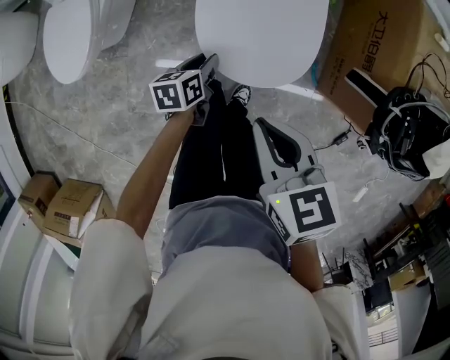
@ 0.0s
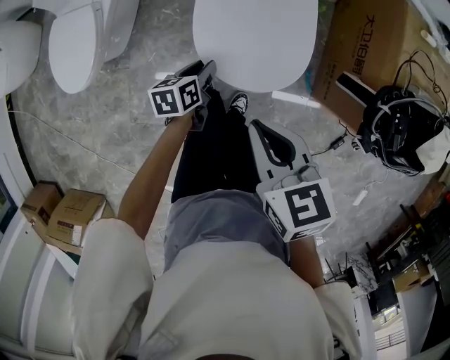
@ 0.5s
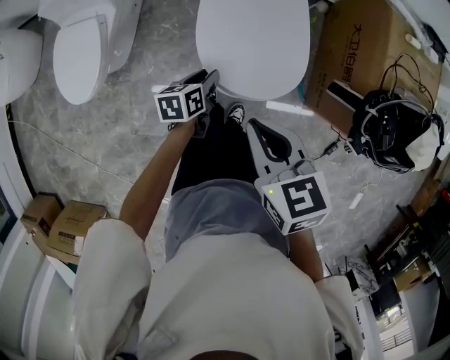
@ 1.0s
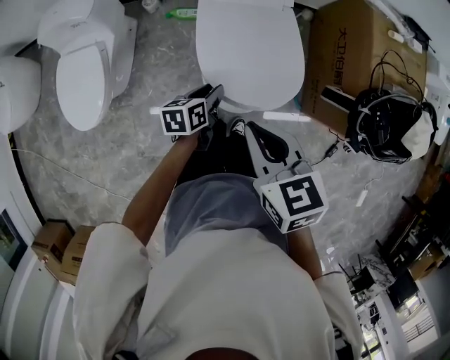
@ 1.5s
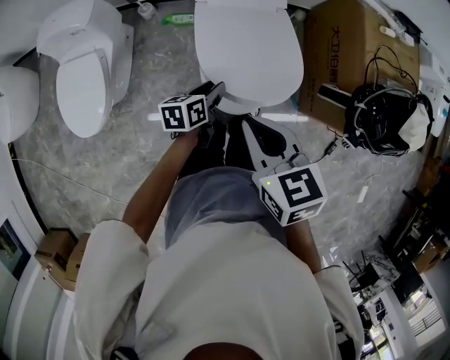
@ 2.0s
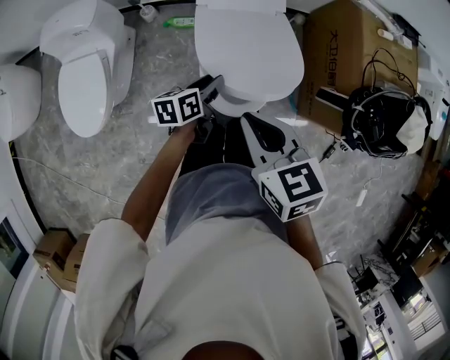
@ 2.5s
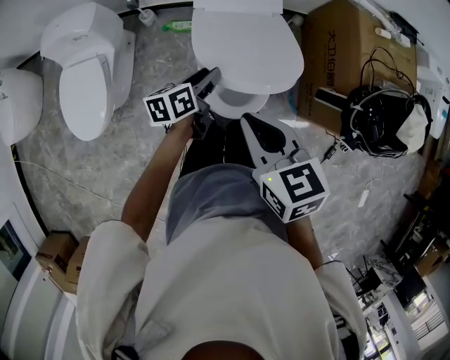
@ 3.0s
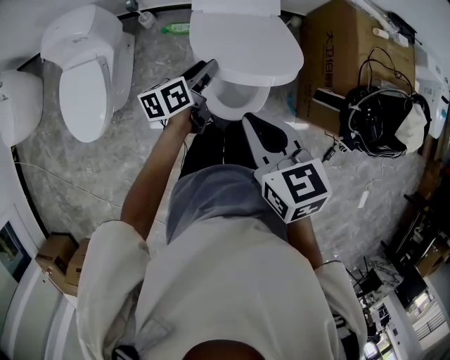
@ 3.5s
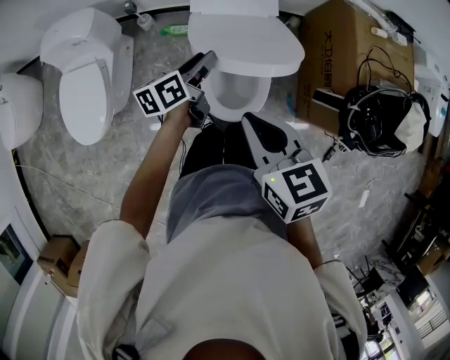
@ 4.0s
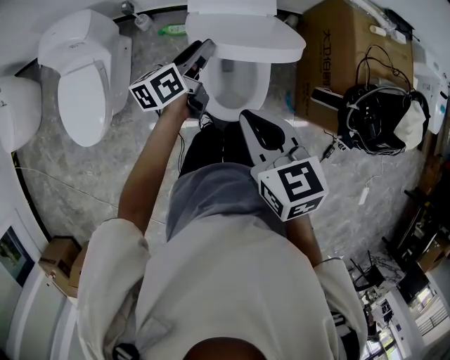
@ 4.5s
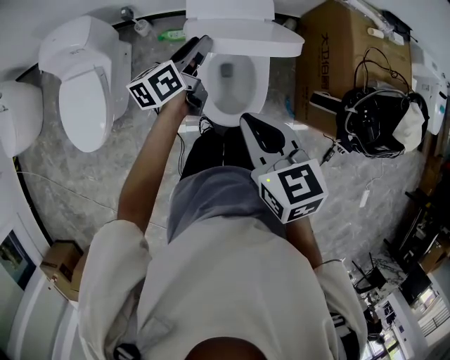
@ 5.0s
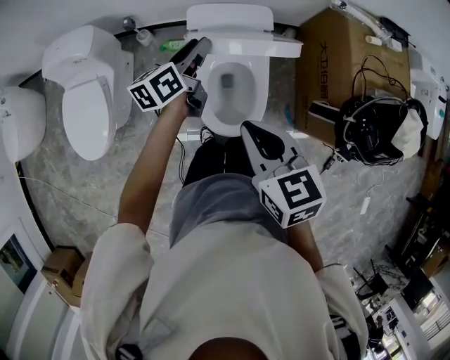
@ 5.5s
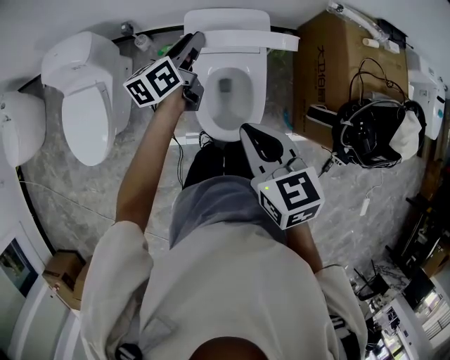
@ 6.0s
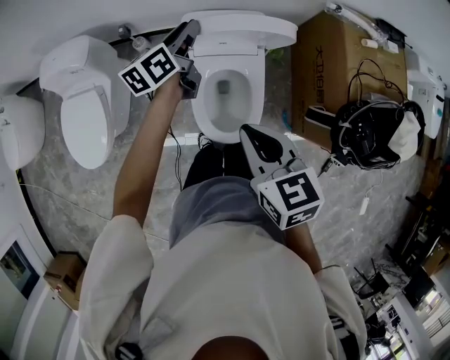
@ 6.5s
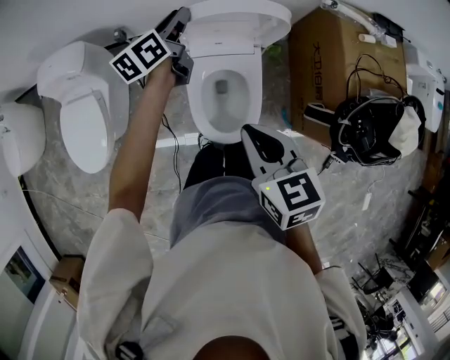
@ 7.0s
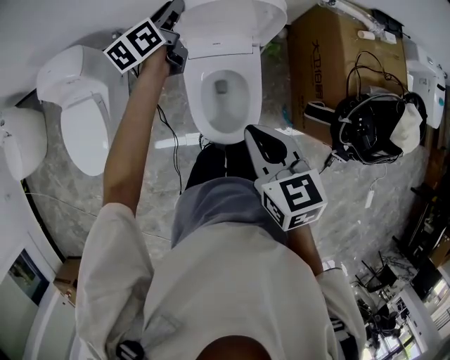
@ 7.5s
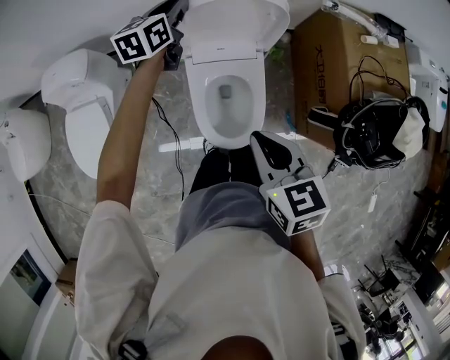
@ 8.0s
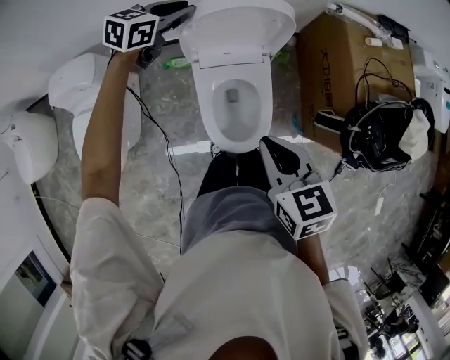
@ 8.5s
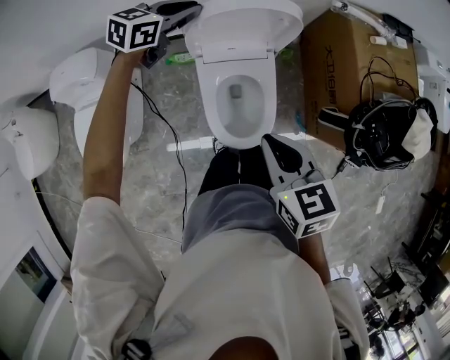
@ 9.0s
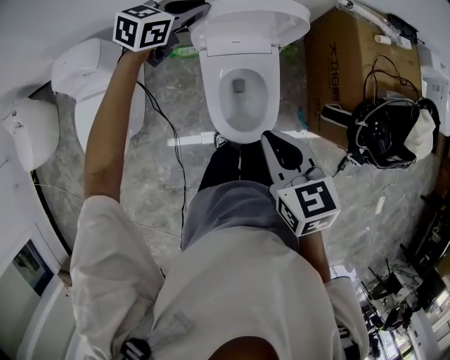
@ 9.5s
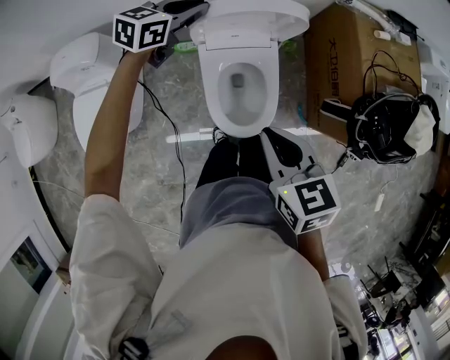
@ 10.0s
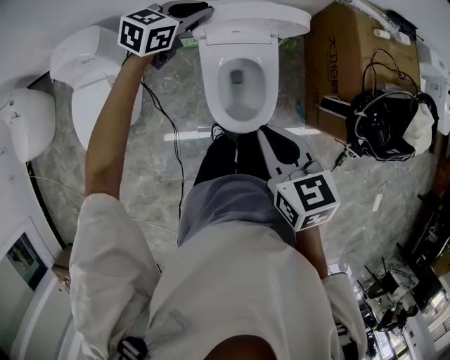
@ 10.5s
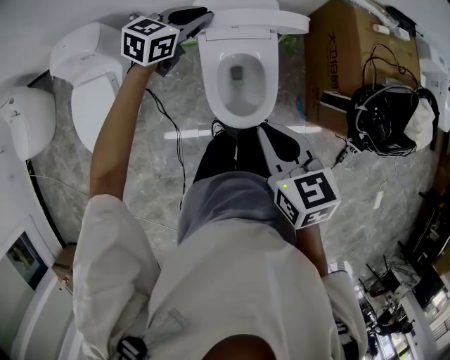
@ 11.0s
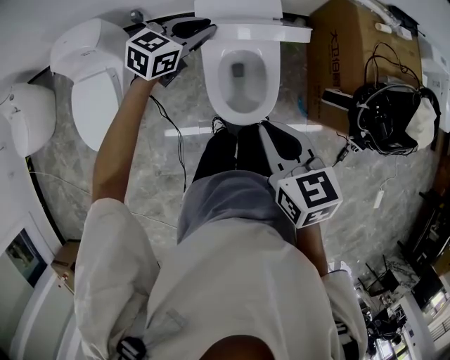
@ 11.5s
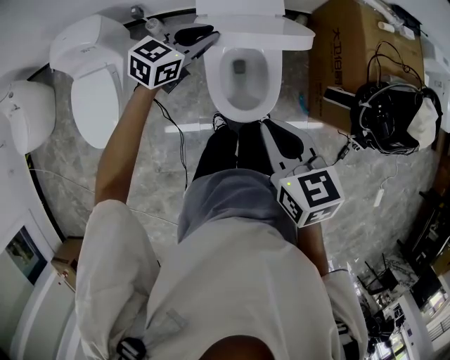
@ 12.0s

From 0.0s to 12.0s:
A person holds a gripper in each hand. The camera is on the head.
From 0.0s to 2.0s: The left gripper is displaced upward and forward by roughly 15 cm. The right gripper shifts some 15 cm upward, forward and to the left.
From 2.0s to 4.0s: The left gripper travels upward and forward by about 15 cm.
From 4.0s to 6.0s: The left gripper shifts some 15 cm forward and upward.
From 6.0s to 8.0s: The left gripper heads forward, covering some 15 cm, and turns by some 20 degrees.
From 8.0s to 10.0s: The left gripper shifts approximately 10 cm backward, and changes its angle by some 30 degrees.
From 10.0s to 12.0s: The left gripper moves backward, some 15 cm.

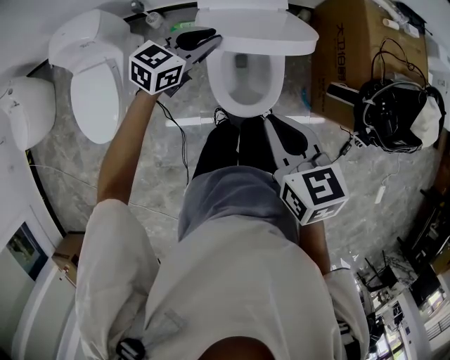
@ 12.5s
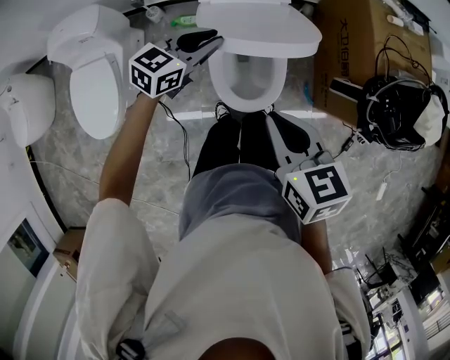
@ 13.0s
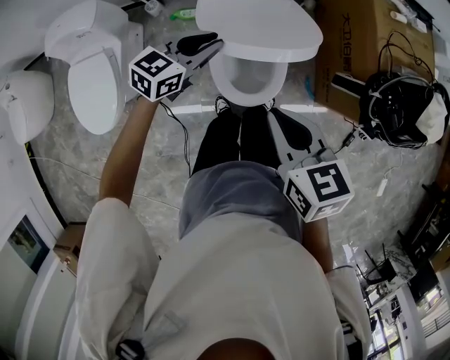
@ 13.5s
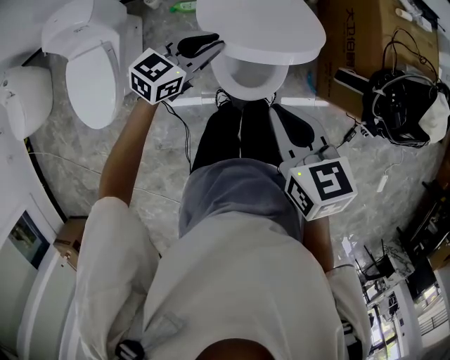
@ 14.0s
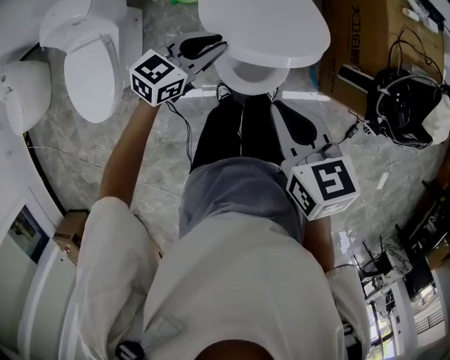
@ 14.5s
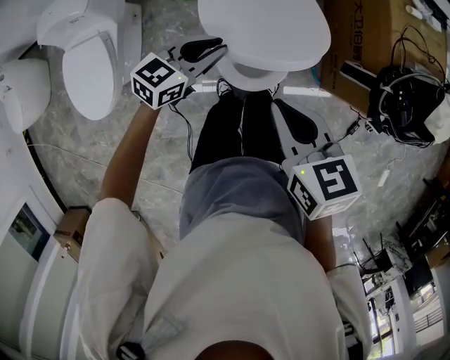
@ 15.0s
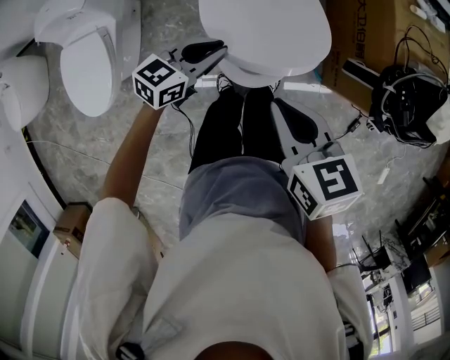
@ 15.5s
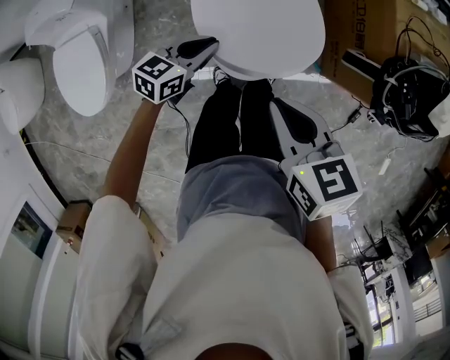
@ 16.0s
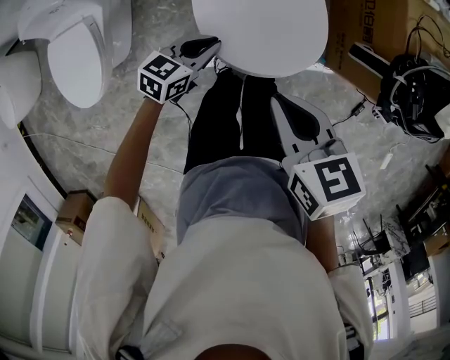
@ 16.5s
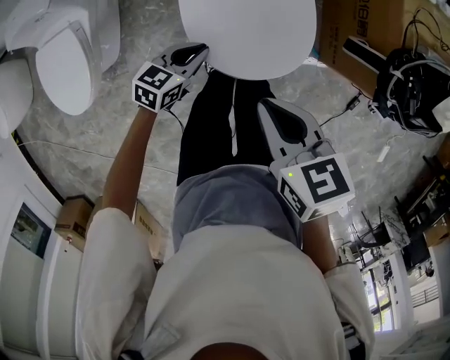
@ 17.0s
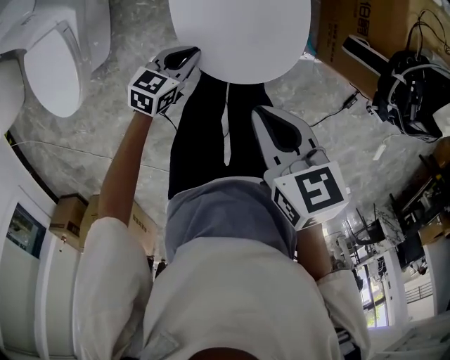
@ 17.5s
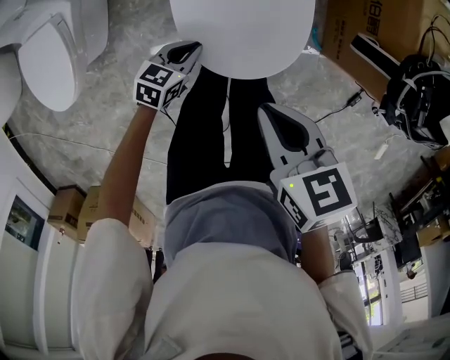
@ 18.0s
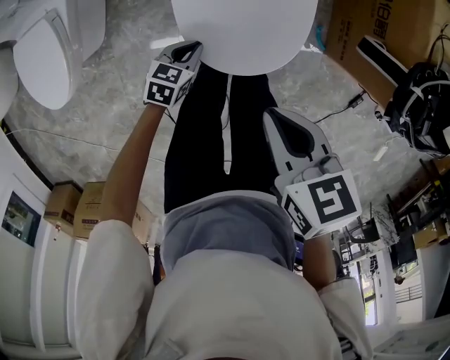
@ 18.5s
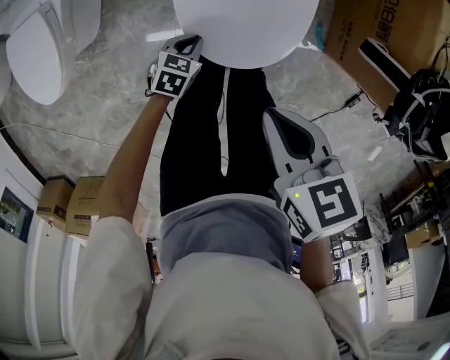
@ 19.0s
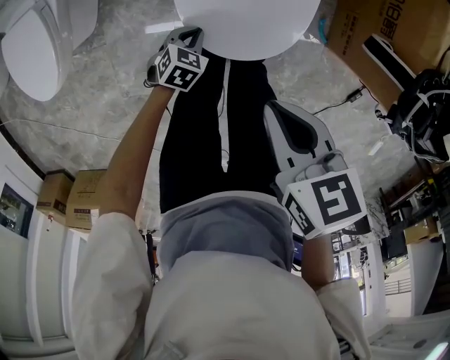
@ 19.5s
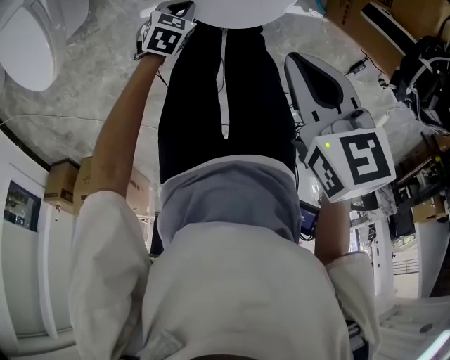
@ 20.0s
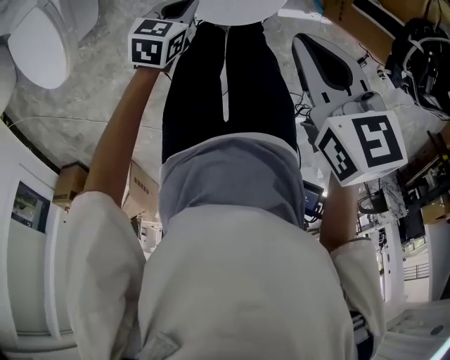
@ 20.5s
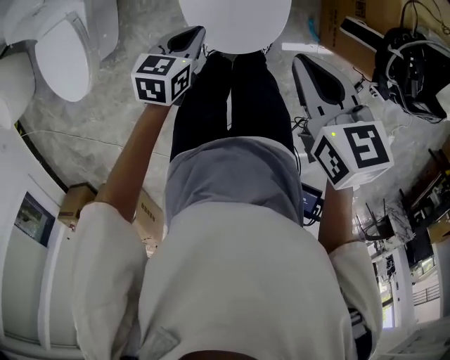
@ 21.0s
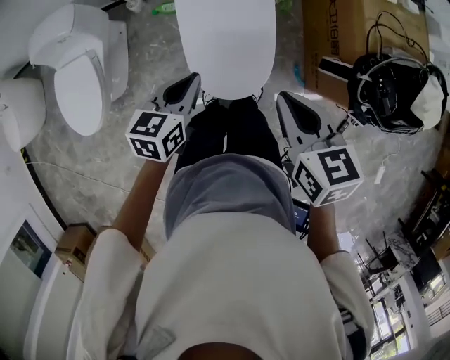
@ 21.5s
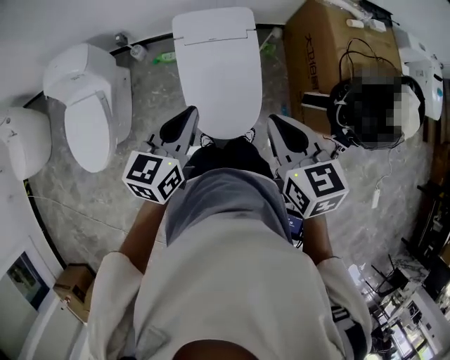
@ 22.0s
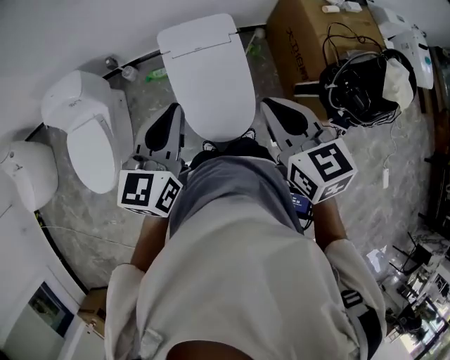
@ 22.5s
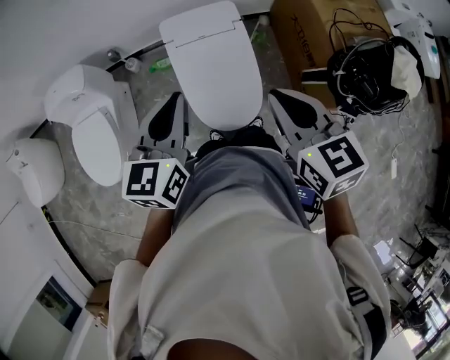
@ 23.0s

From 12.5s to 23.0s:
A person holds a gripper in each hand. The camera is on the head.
From 12.5s to 14.5s: The left gripper goes some 5 cm backward.
From 14.5s to 16.5s: The left gripper moves downward and backward, about 15 cm. The right gripper shifts some 5 cm downward.
From 16.5s to 19.0s: The right gripper goes roughly 10 cm downward. Meanwhile the left gripper travels downward by some 25 cm, and changes its angle by roughly 30 degrees.
From 19.0s to 21.0s: The right gripper travels upward and to the right by approximately 15 cm, while the left gripper moves upward, roughly 25 cm.
From 21.0s to 23.0s: The right gripper heads upward, covering some 15 cm, and swivels about 20 degrees. The left gripper travels upward by about 30 cm, and turns by roughly 30 degrees.

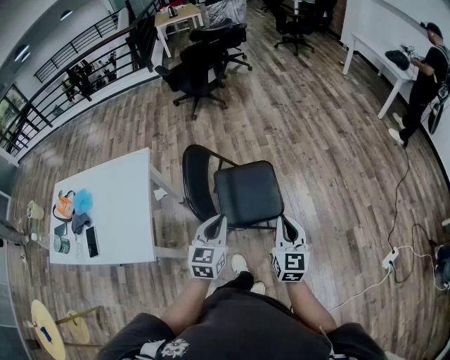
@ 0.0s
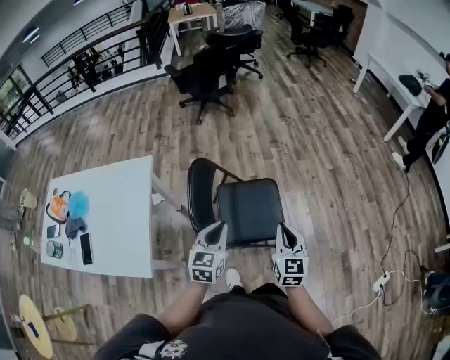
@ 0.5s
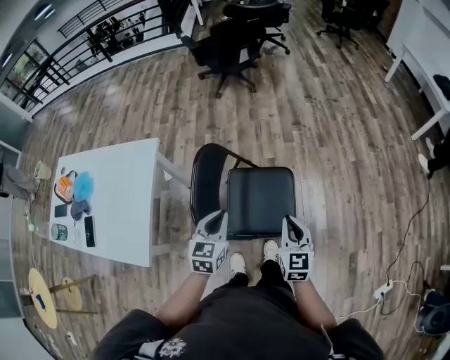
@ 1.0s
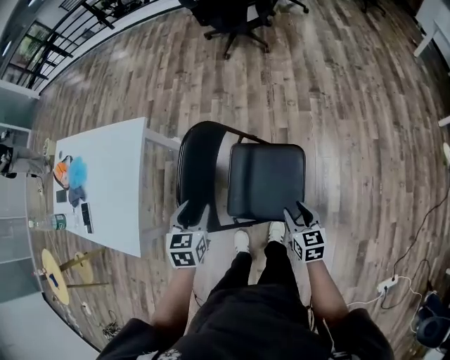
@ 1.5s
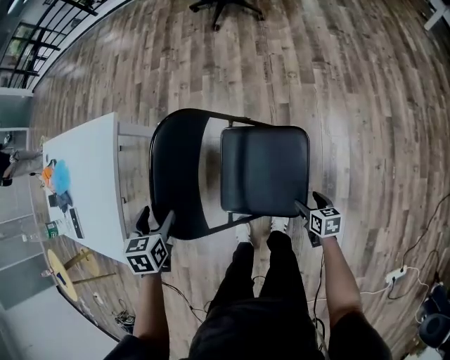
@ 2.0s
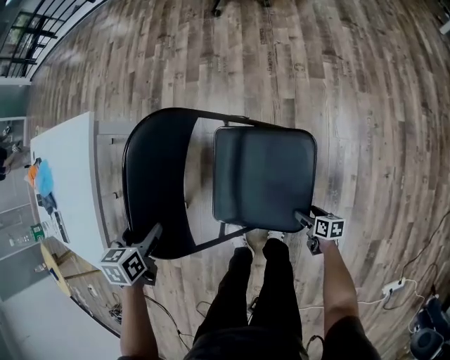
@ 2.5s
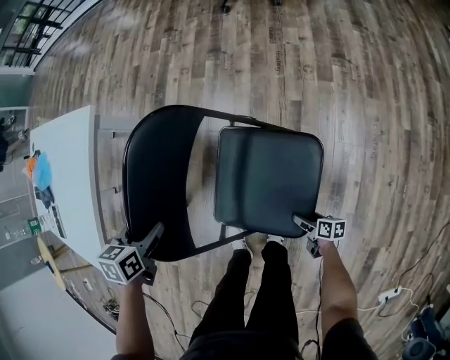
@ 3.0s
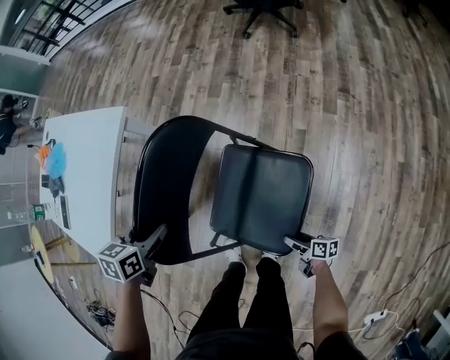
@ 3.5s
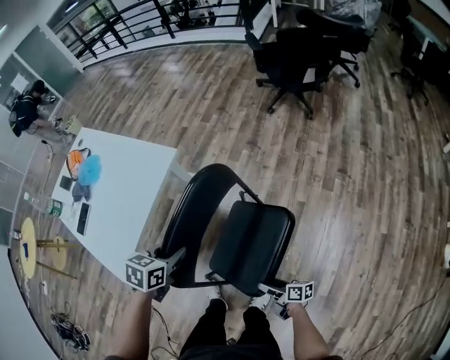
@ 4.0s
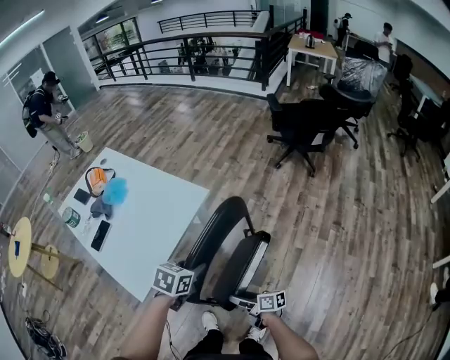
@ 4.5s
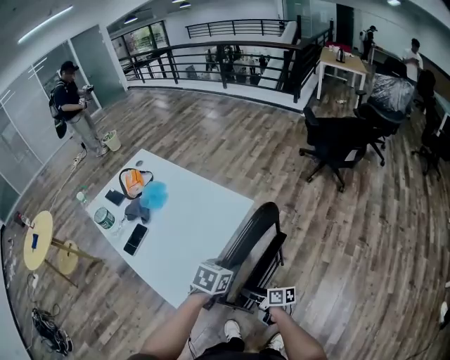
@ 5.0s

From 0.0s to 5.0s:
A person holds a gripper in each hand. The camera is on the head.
From 0.0s to 2.5s: The right gripper shifts roughly 60 cm downward, points its fingers about 30 degrees further downward, and opens. Meanwhile the left gripper moves roughly 40 cm, points its fingers roughly 40 degrees further downward, and opens.
From 2.5s to 5.0s: The right gripper shifts some 70 cm to the left, upward and forward, and rotates some 40 degrees. The left gripper moves upward and to the left, some 25 cm, and closes.
